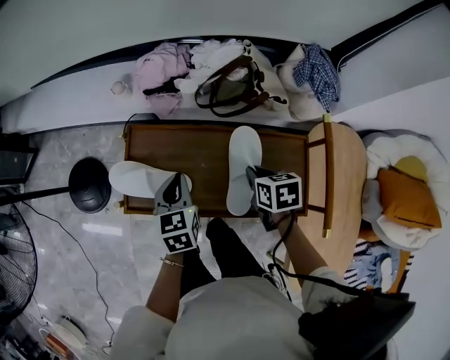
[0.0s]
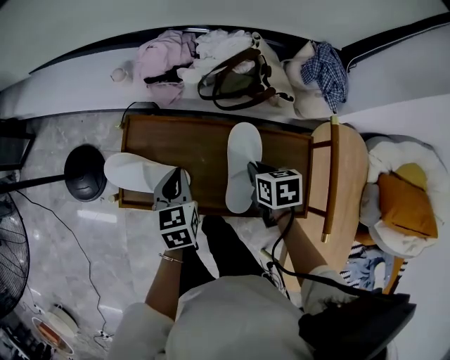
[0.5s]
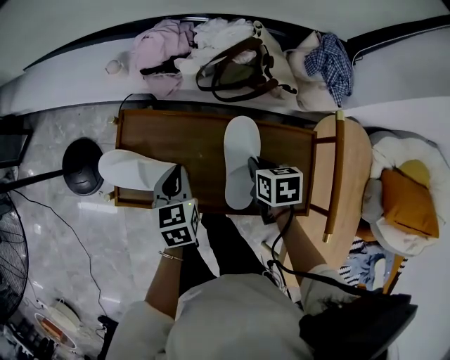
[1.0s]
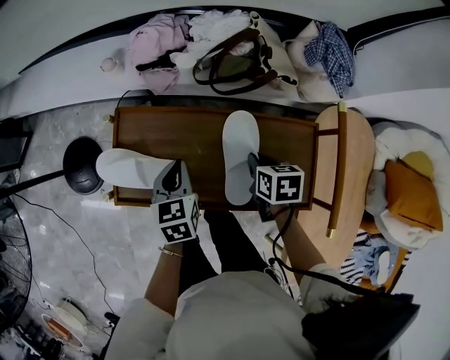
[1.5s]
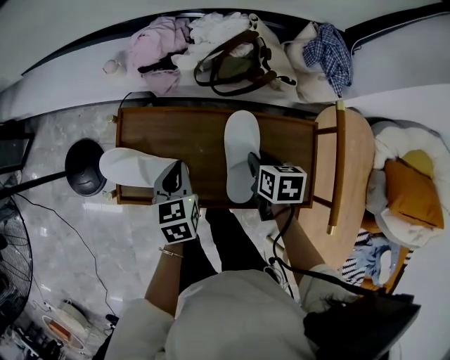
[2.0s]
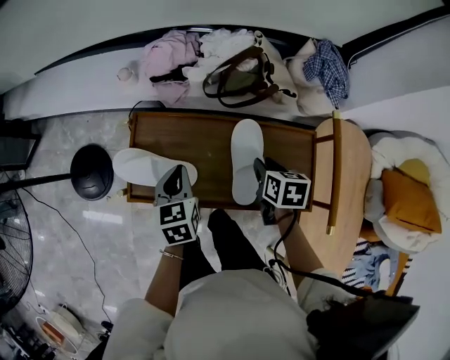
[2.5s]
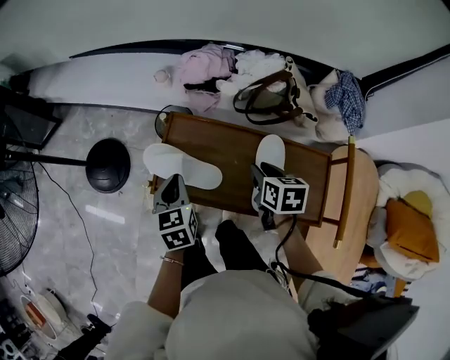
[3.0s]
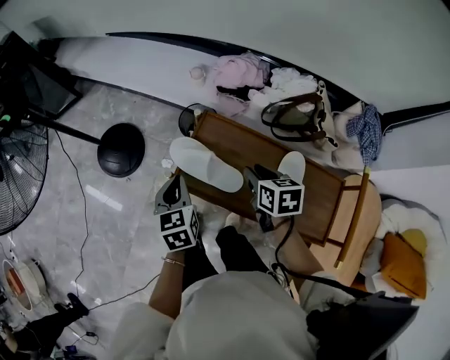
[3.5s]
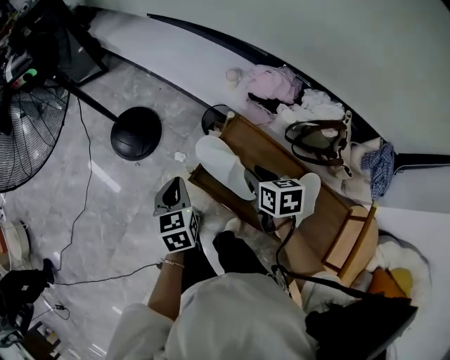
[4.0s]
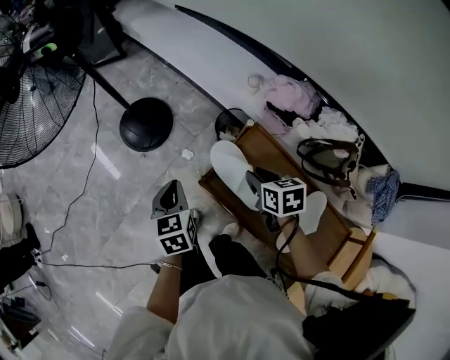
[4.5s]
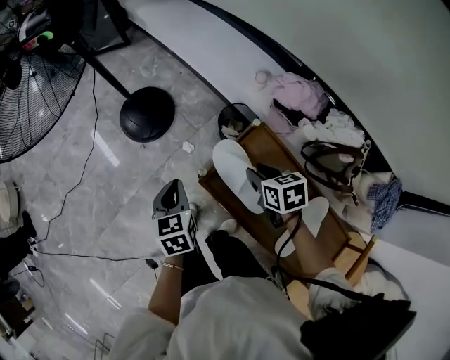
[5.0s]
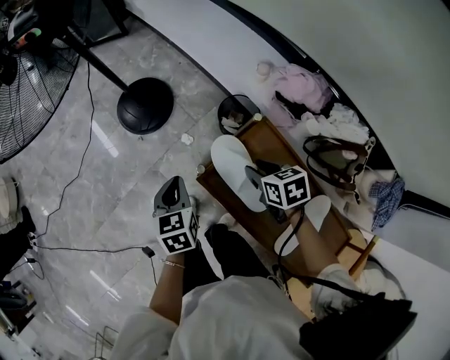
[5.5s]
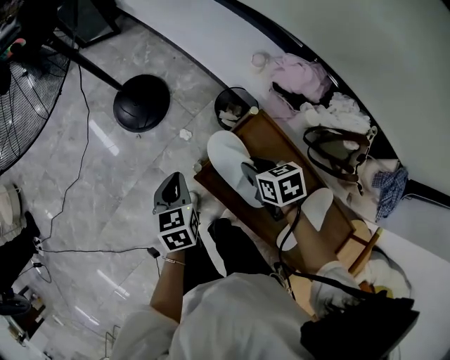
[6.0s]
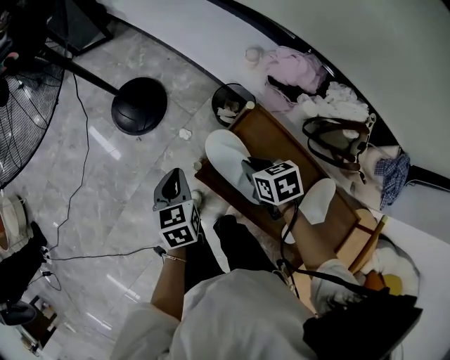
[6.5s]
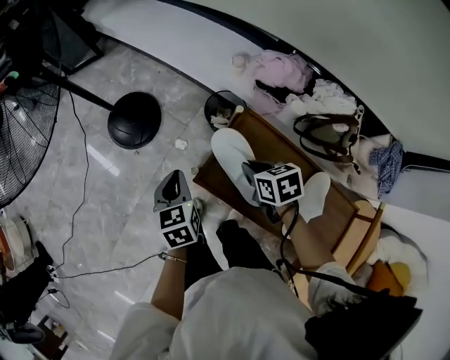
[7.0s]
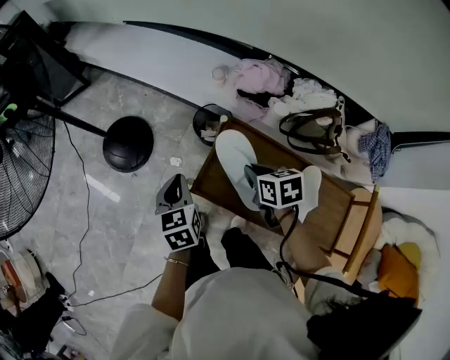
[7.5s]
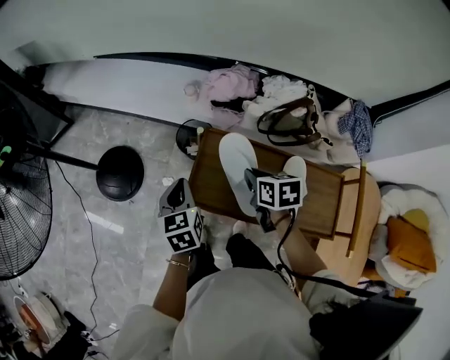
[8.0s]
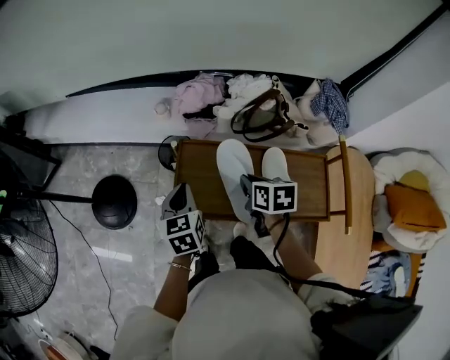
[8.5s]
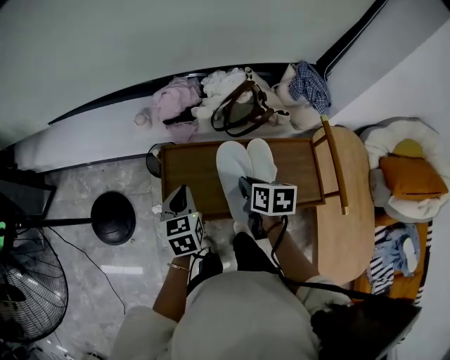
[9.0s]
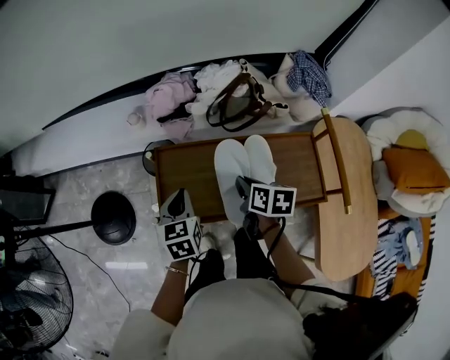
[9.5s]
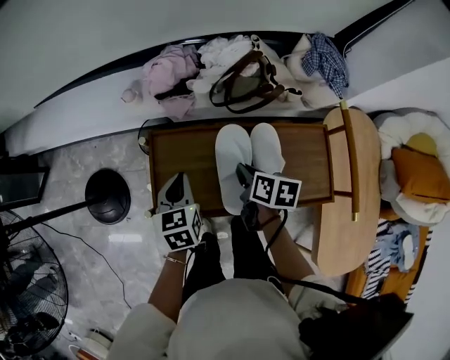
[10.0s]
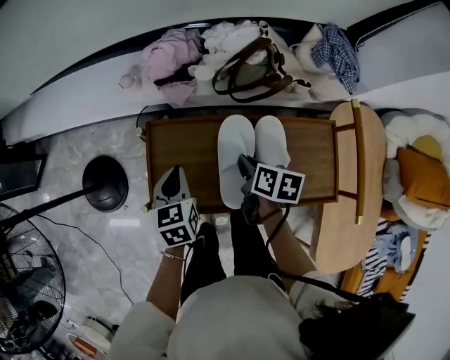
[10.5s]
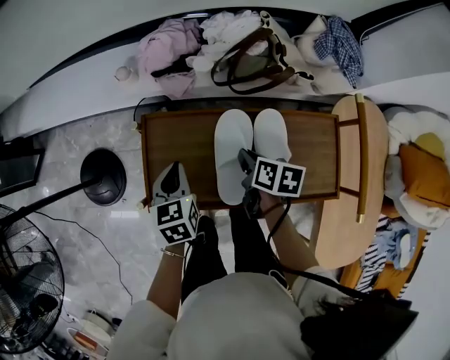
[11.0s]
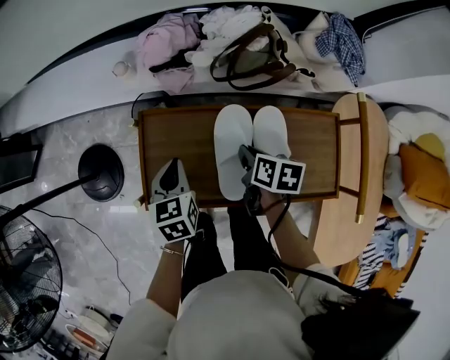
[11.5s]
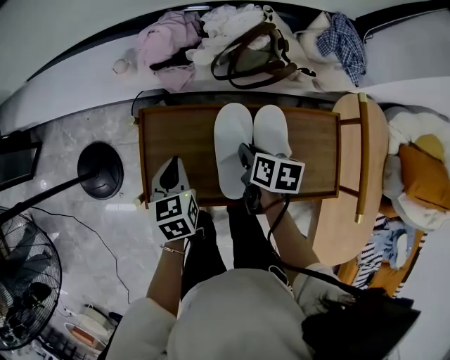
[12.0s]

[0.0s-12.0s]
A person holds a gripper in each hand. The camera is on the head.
0.0s to 2.0s: The right gripper opens up.
2.0s to 4.0s: The right gripper shifts by some 30 cm, and changes its angle by some 40 degrees. The left gripper moves some 25 cm, and swivels about 40 degrees.
4.0s to 6.0s: The left gripper moves downward, about 5 cm, while the right gripper moves downward and forward, some 10 cm, and rotates about 30 degrees.
6.0s to 8.0s: The left gripper shifts by about 10 cm, and turns by about 30 degrees. Meanwhile the right gripper changes place by some 15 cm, and rotates roughly 40 degrees.
8.0s to 10.0s: The right gripper moves to the right and downward, approximately 10 cm, and rotates about 40 degrees, while the left gripper heads to the right, covering some 15 cm, and changes its angle by roughly 20 degrees.
10.0s to 12.0s: The grippers make only small movements.

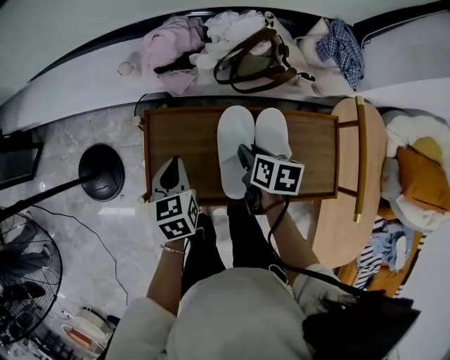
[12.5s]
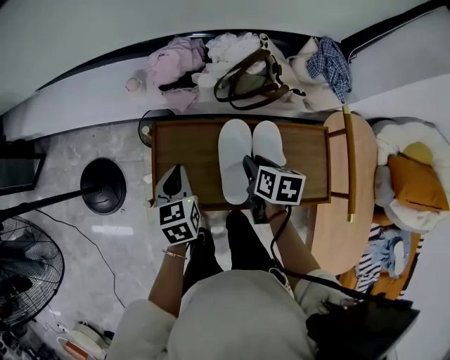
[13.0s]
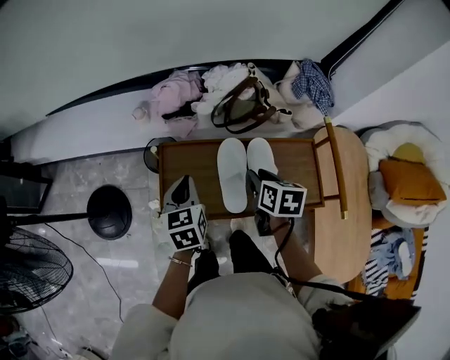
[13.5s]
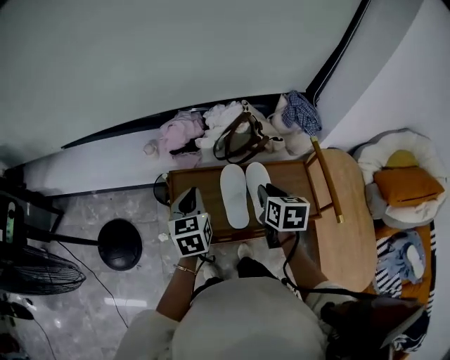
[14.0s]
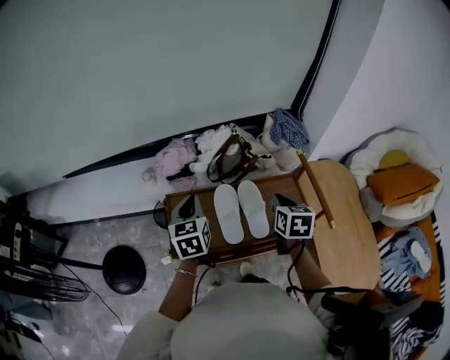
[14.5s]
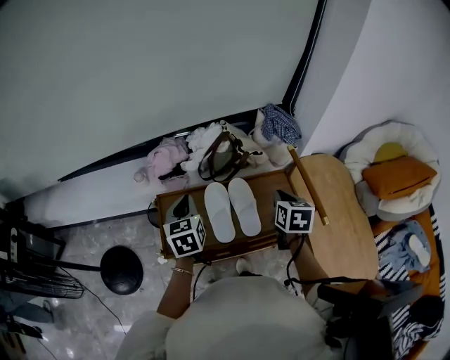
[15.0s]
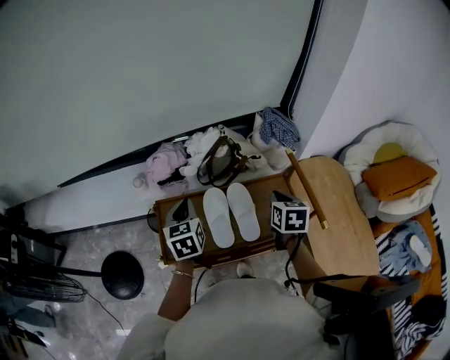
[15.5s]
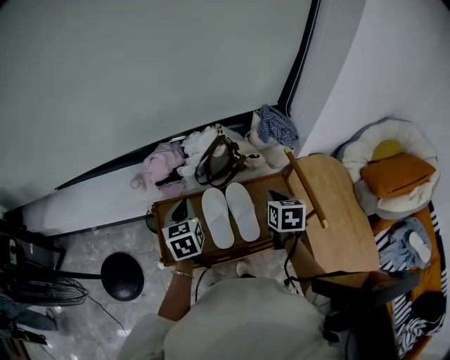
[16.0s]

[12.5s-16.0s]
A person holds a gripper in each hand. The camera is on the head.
12.5s to 14.5s: The left gripper moves upward, approximately 20 cm, and changes its angle by some 20 degrees. The right gripper moves upward and to the right, some 20 cm, changes its angle by about 30 degrees, and closes up.
14.5s to 16.0s: The grippers make only small movements.

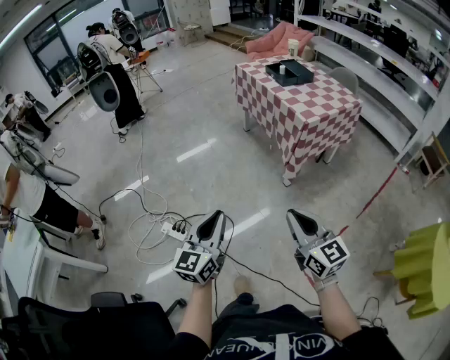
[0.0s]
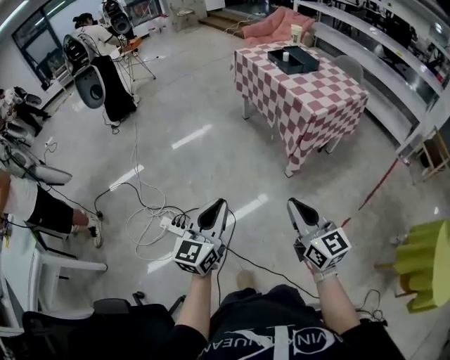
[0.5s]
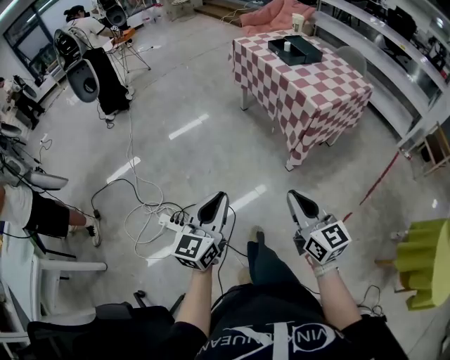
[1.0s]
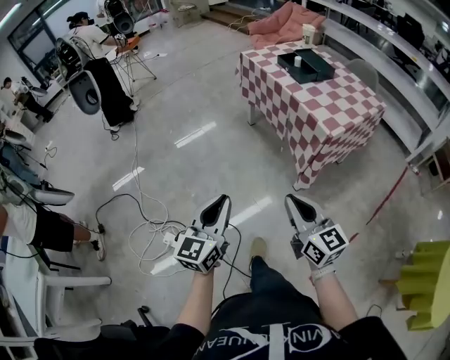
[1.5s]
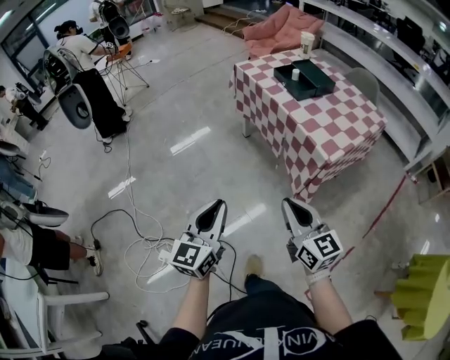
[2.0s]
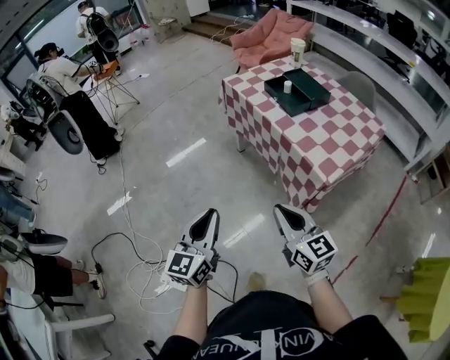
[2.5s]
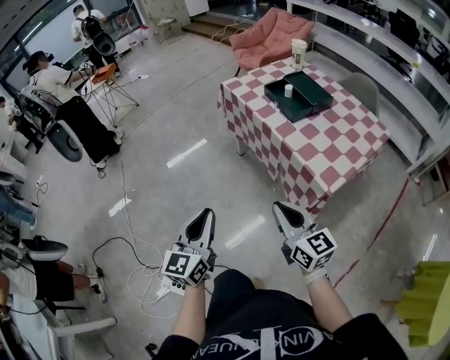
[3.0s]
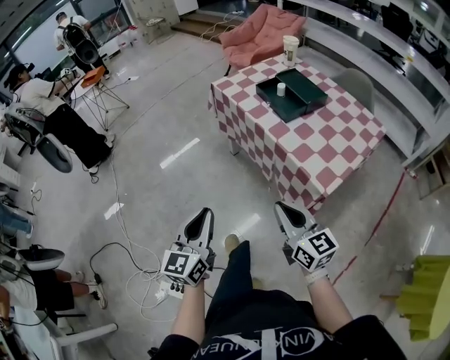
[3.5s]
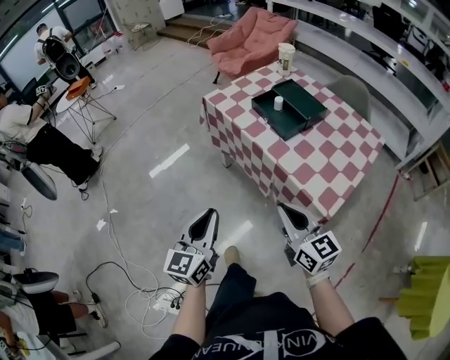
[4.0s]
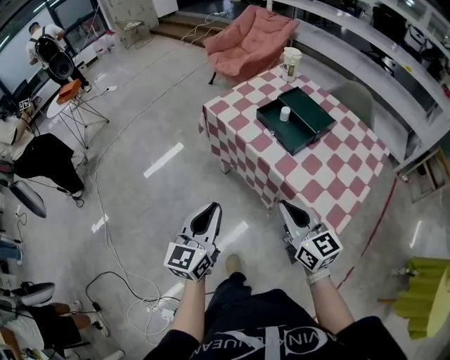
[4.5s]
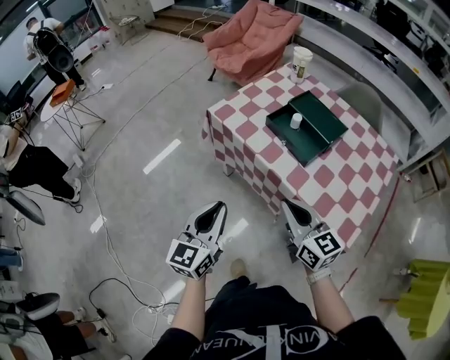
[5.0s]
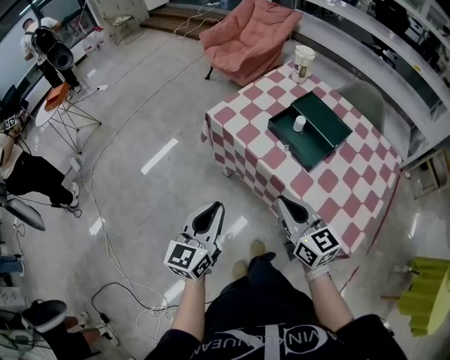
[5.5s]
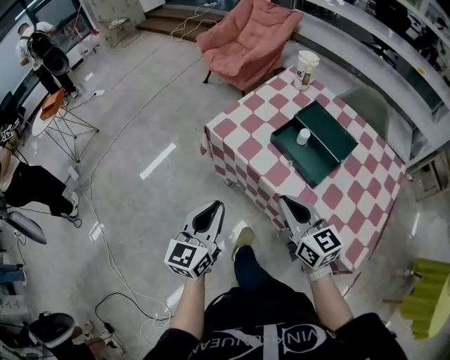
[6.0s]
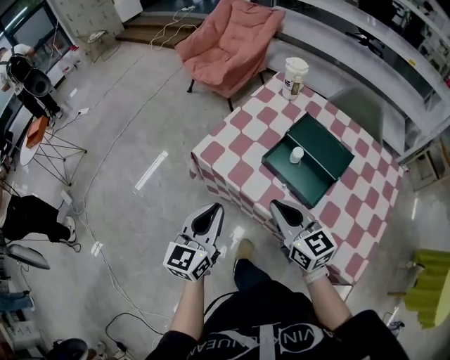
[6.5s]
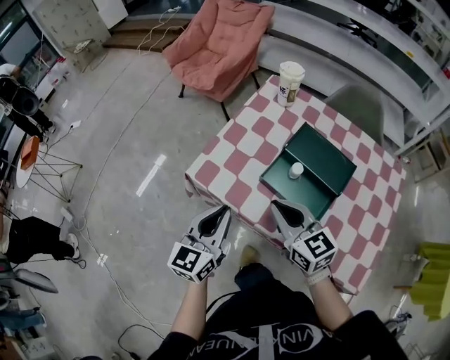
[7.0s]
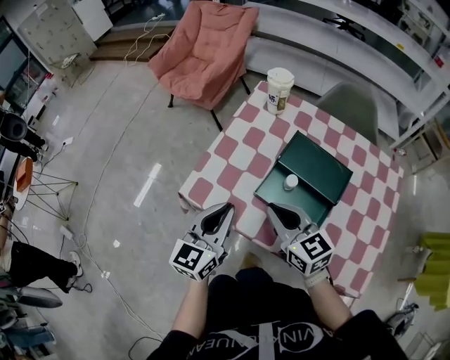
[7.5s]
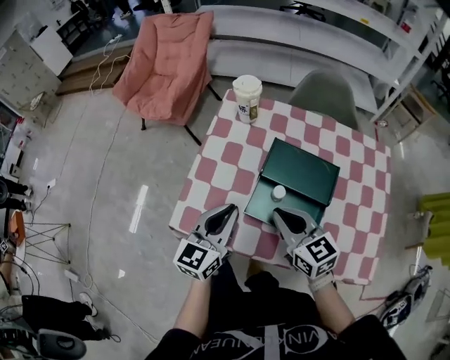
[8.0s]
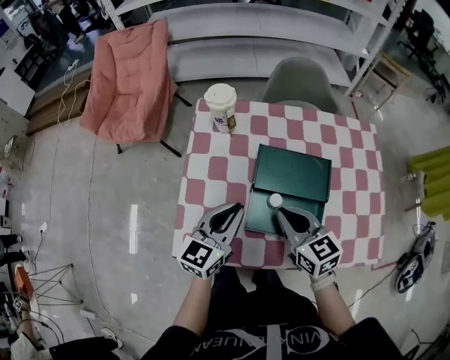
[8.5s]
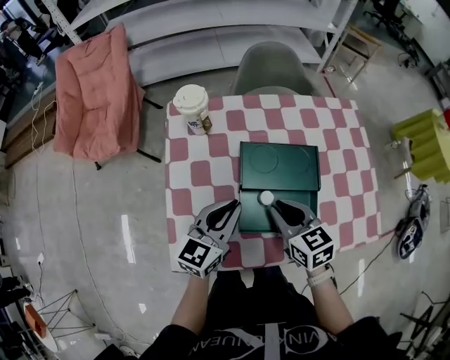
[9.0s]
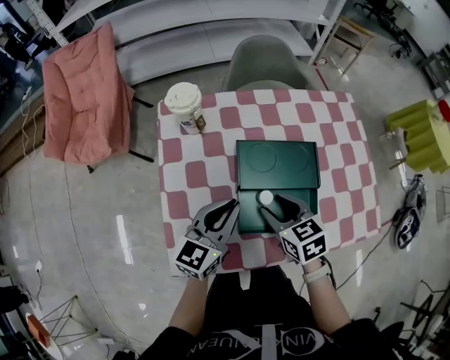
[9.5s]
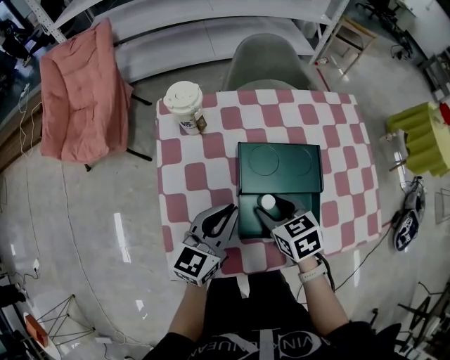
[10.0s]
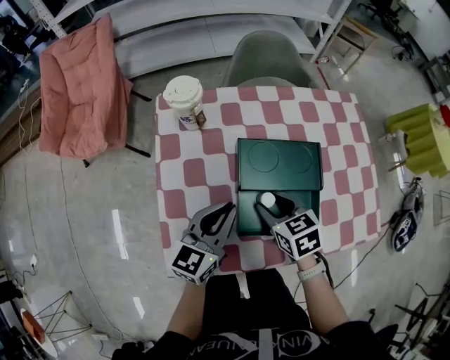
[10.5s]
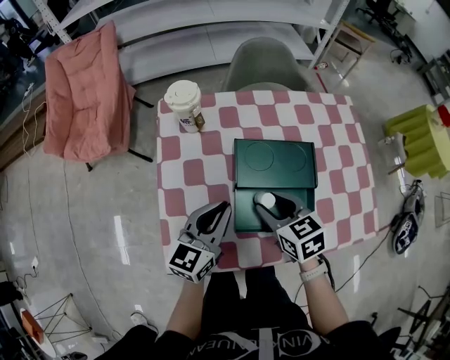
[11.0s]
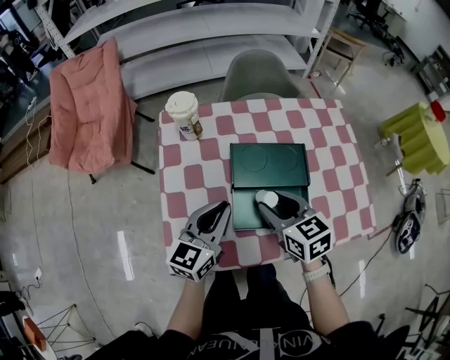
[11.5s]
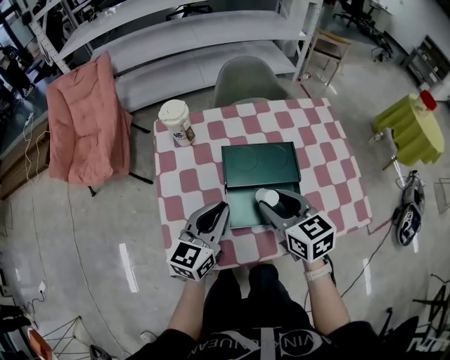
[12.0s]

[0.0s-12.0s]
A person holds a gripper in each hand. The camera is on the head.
0.0s to 2.0s: Both grippers travel together forward, about 35 cm.
2.0s to 4.0s: The grippers both shift forward by about 25 cm.
4.0s to 6.0s: The grippers both shift forward by roughly 30 cm.
6.0s to 8.0s: The right gripper moves some 25 cm, and turns by some 20 degrees. The left gripper shifts by roughly 30 cm, and rotates some 30 degrees.
8.0s to 10.0s: The right gripper is displaced downward by approximately 10 cm, rotates about 40 degrees, and opens up, while the left gripper ends up approximately 10 cm from where it was, and swivels about 30 degrees.
10.0s to 12.0s: The left gripper shifts by some 5 cm. Meanwhile the right gripper moves upward, approximately 10 cm, and changes its angle by some 20 degrees.
